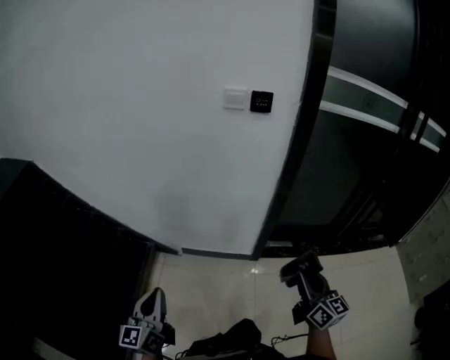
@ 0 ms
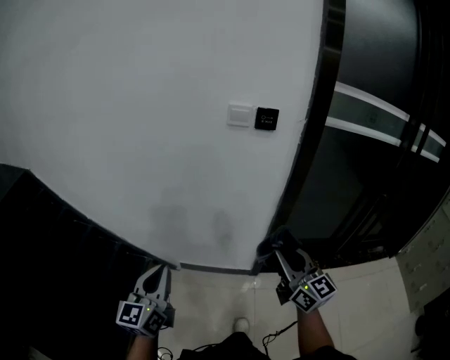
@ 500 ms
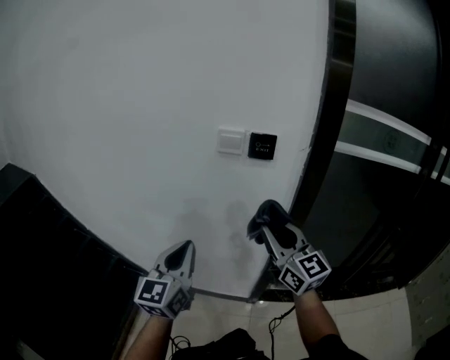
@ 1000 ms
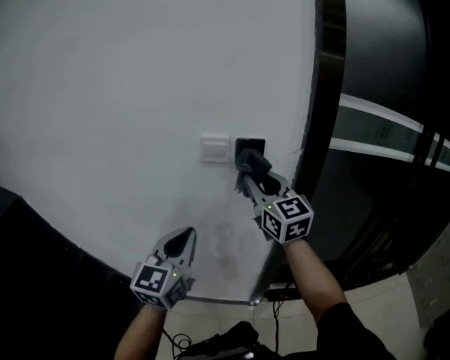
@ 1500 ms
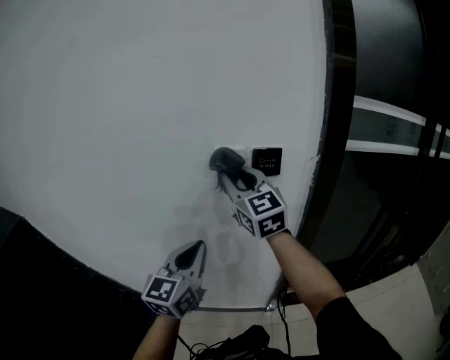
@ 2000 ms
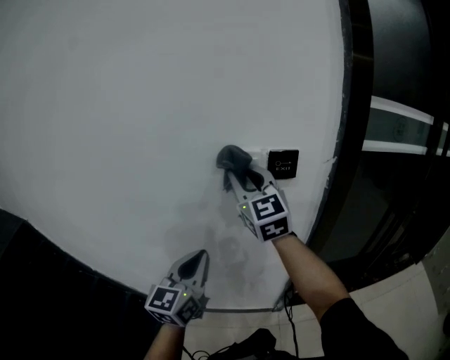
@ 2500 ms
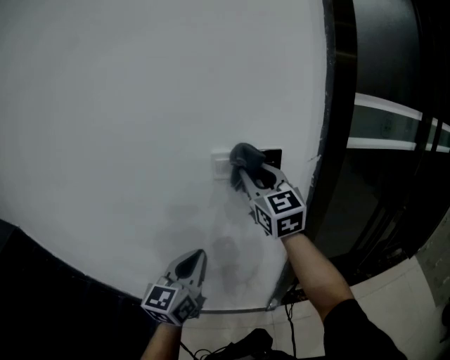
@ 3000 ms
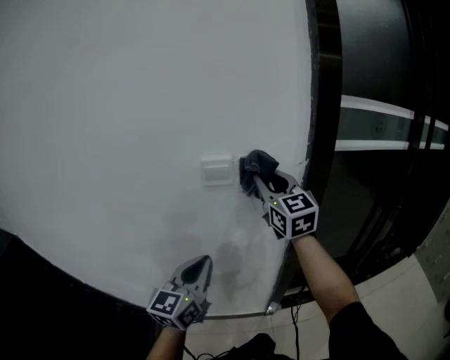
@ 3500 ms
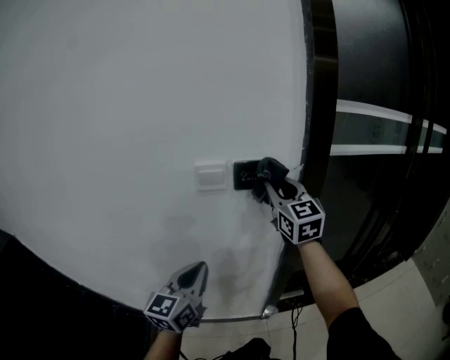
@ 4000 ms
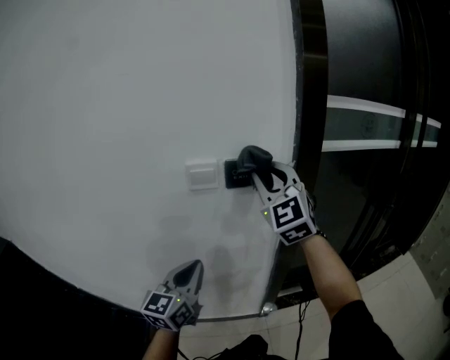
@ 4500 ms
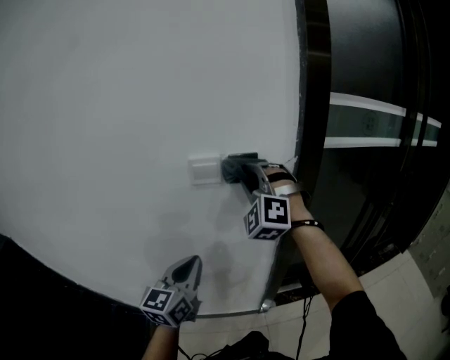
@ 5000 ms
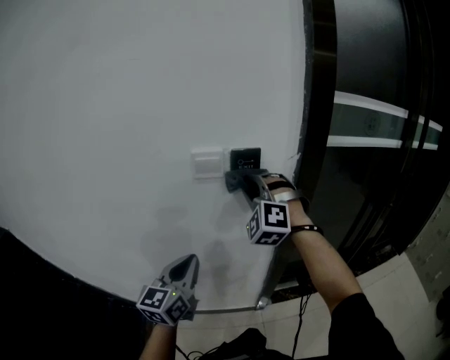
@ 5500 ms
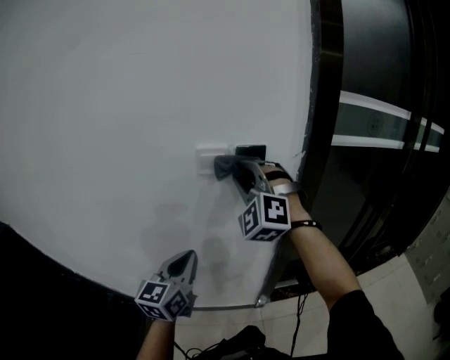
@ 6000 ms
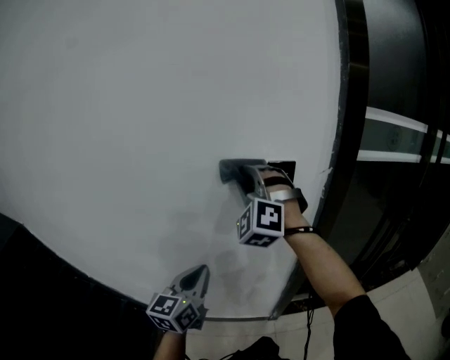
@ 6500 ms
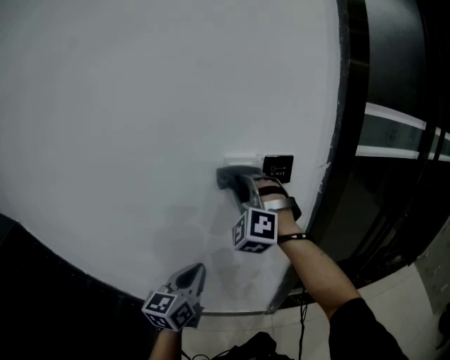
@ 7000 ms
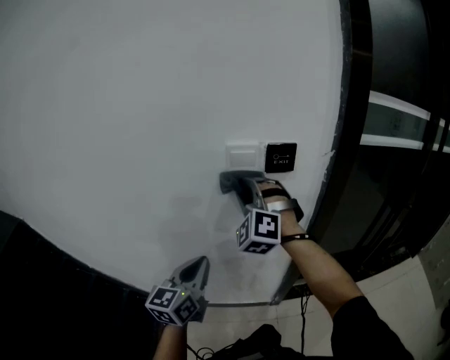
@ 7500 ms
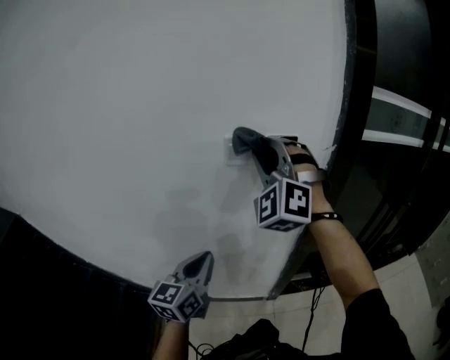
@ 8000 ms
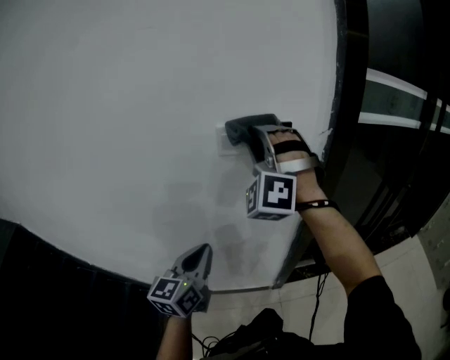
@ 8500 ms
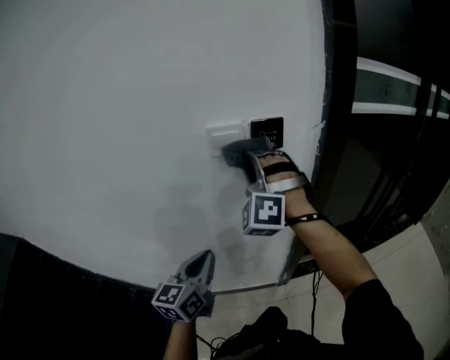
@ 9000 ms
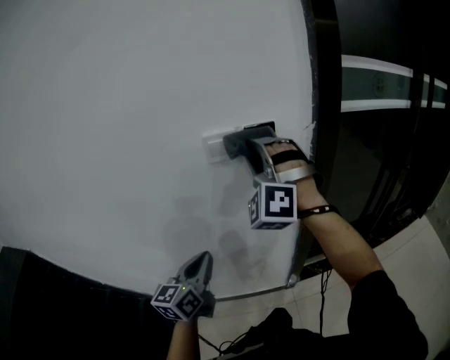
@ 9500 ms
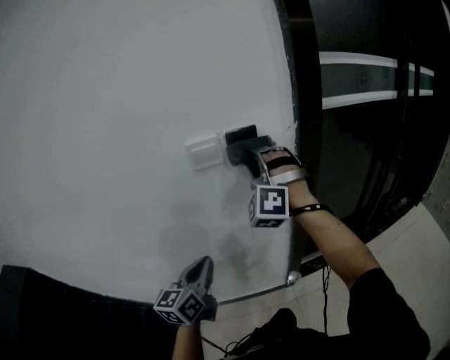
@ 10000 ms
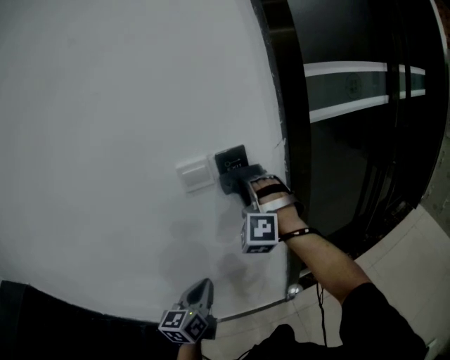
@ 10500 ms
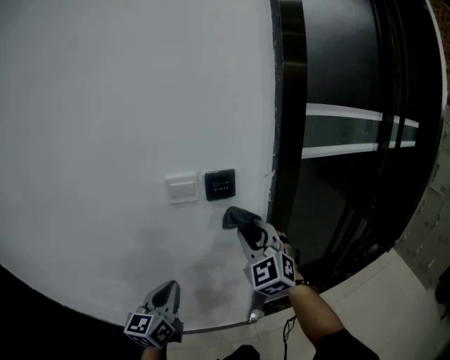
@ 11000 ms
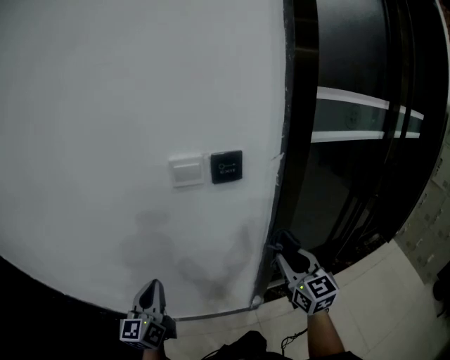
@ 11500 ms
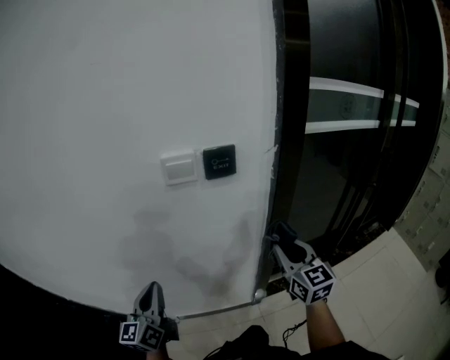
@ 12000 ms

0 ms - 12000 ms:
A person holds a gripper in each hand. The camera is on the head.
0 ms - 2000 ms: The left gripper heads forward, to the right and upward, covering roughly 50 cm, and rotates approximately 20 degrees; the right gripper goes roughly 60 cm forward and upward, and rotates roughly 40 degrees.
2000 ms - 4000 ms: The right gripper goes approximately 15 cm to the right; the left gripper changes place by about 5 cm.
4000 ms - 6000 ms: The right gripper moves to the left, some 10 cm, and rotates around the line of its fingers by about 60 degrees, counterclockwise from behind.
8000 ms - 10000 ms: The right gripper moves up and down over approximately 10 cm, changing direction 2 times.
10000 ms - 12000 ms: The left gripper moves to the left, roughly 5 cm; the right gripper goes roughly 25 cm downward, to the right and backward, and twists roughly 80 degrees clockwise, seen from behind.

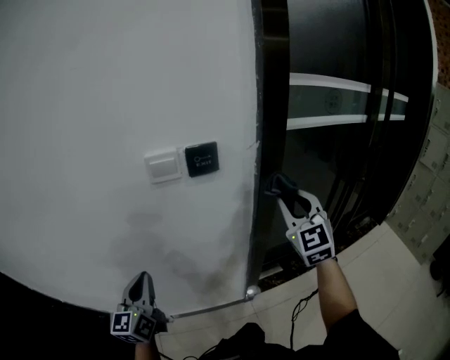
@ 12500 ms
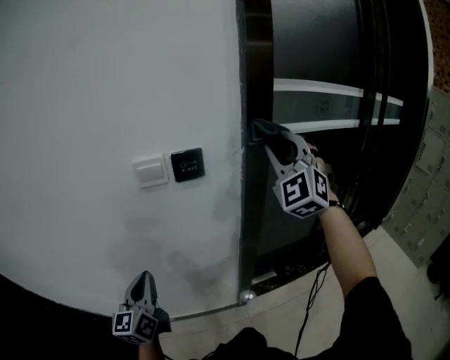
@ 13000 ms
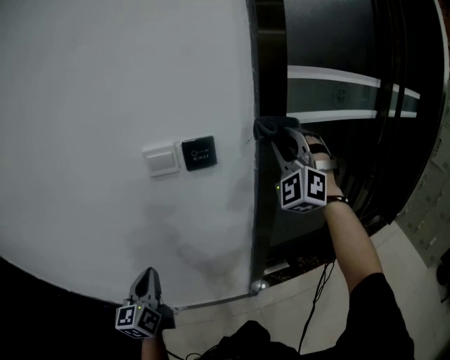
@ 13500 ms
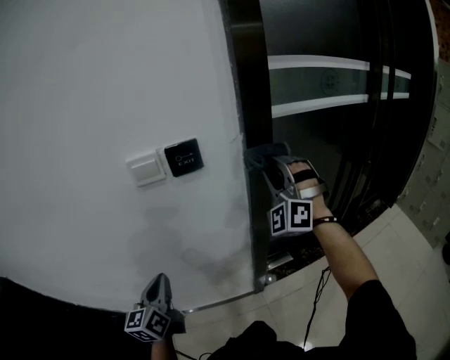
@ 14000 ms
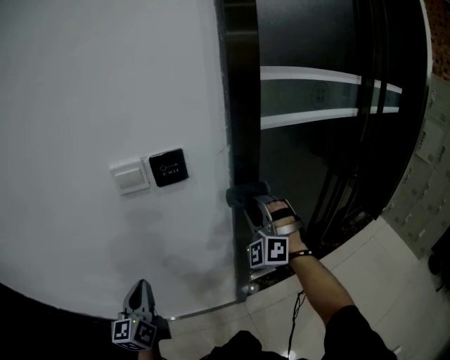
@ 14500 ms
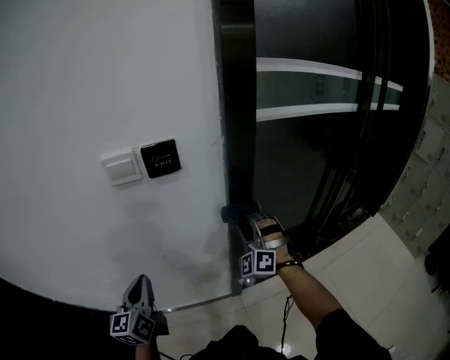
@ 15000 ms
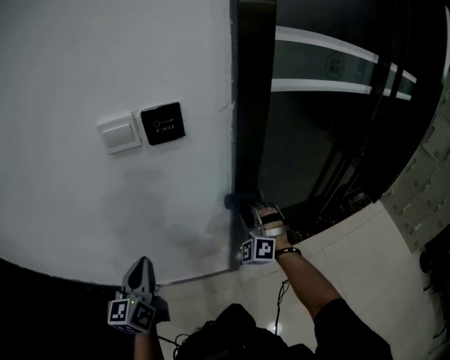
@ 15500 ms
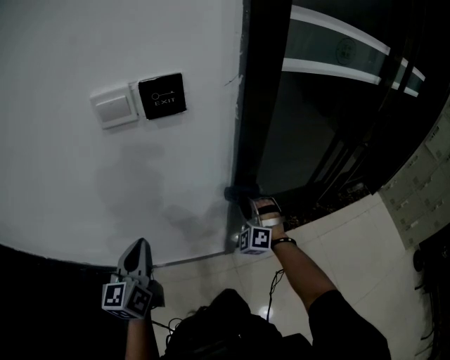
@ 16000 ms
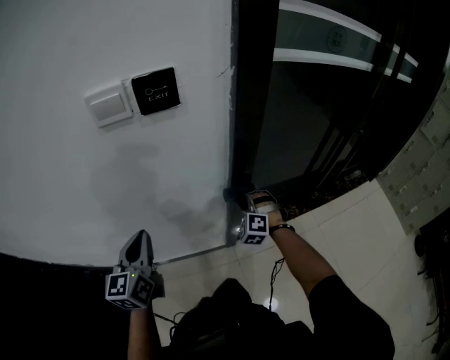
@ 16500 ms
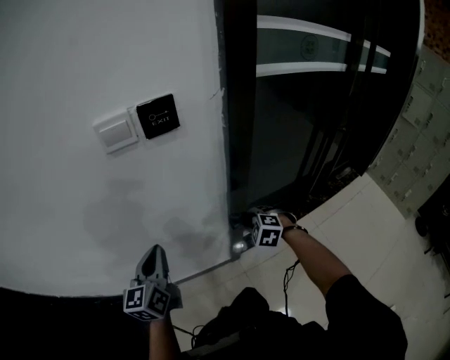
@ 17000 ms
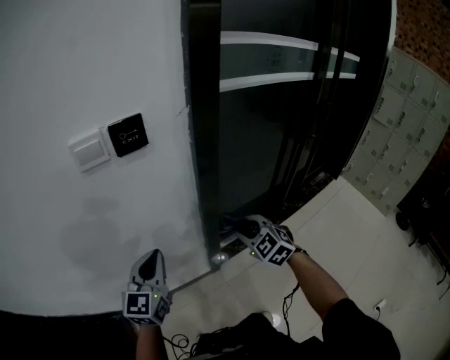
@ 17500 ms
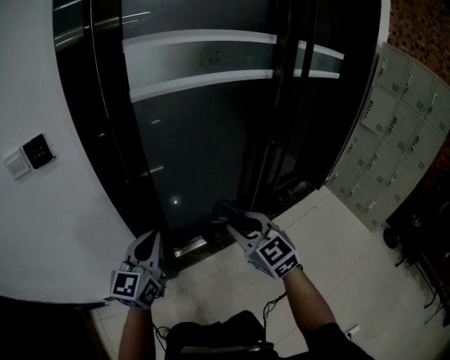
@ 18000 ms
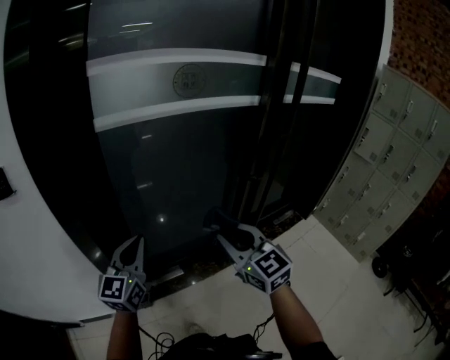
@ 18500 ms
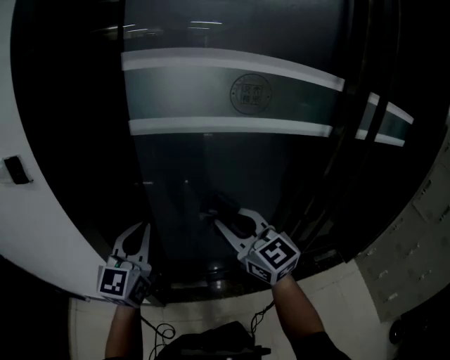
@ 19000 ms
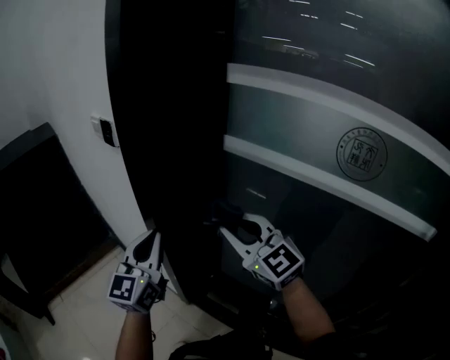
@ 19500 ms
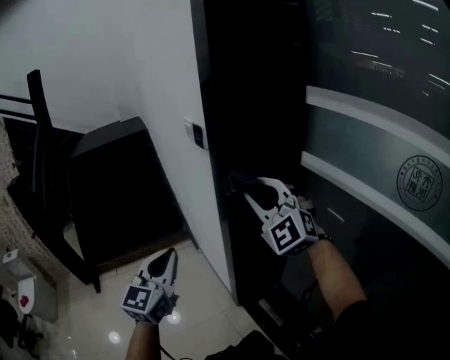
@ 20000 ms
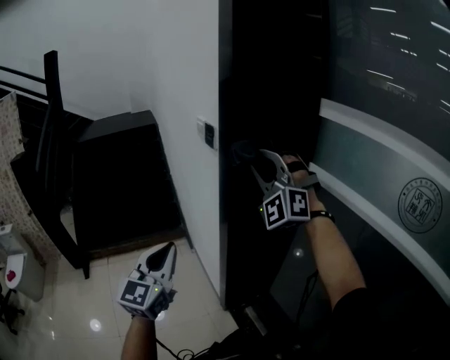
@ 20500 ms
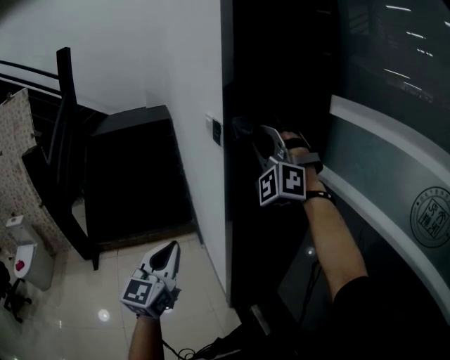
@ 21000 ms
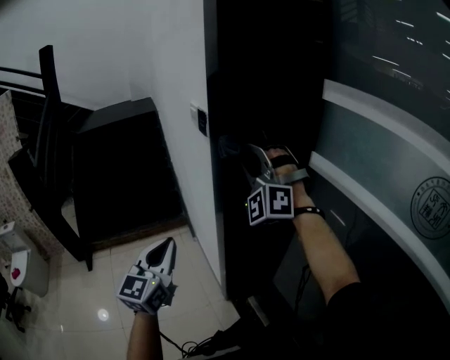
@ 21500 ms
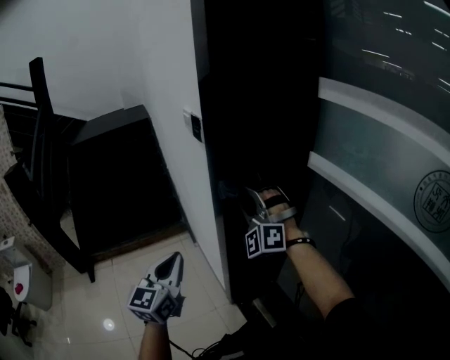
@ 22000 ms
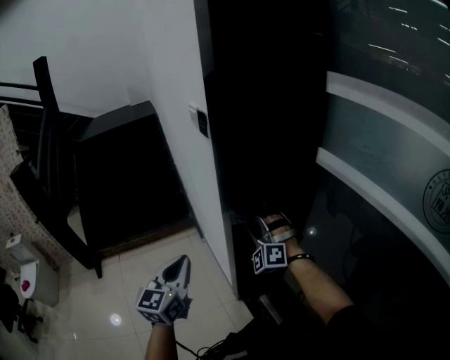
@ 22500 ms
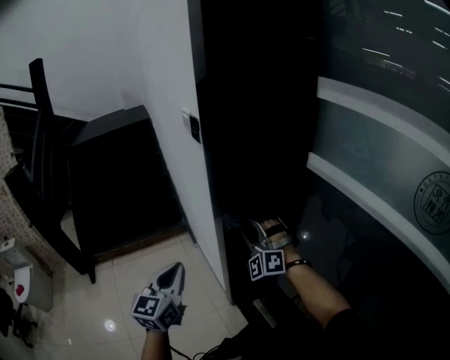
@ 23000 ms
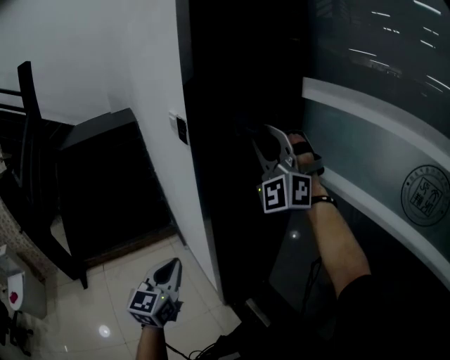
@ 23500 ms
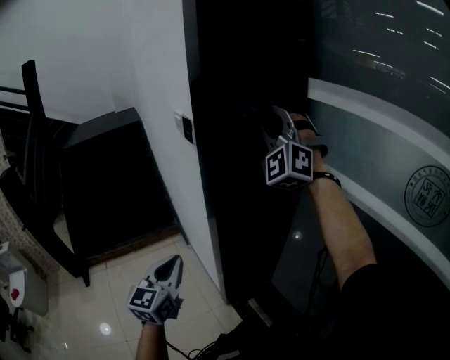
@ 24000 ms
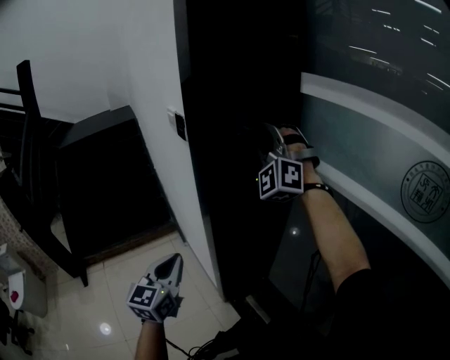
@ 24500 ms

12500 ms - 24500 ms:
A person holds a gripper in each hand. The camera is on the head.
12500 ms - 14500 ms: The right gripper travels forward by about 5 cm, goes upward and returns, approximately 15 cm each way, and rolls counterclockwise, seen from behind, by approximately 50 degrees. The left gripper shifts about 5 cm to the right.
14500 ms - 16500 ms: The right gripper shifts roughly 30 cm downward, and points its fingers some 30 degrees further downward. Meanwhile the left gripper shifts by roughly 5 cm.
16500 ms - 18500 ms: The two grippers travel together, to the right, approximately 50 cm. The right gripper moves upward, about 25 cm, and twists about 50 degrees clockwise, seen from behind; the left gripper changes its angle by about 20 degrees.
18500 ms - 20500 ms: The right gripper changes place by roughly 40 cm, and changes its angle by roughly 100 degrees. Meanwhile the left gripper ends up about 10 cm from where it was, and turns by some 90 degrees.
20500 ms - 22500 ms: The left gripper goes some 10 cm downward. The right gripper shifts some 30 cm downward.
22500 ms - 24500 ms: The right gripper heads upward, covering approximately 30 cm, and rotates roughly 20 degrees.

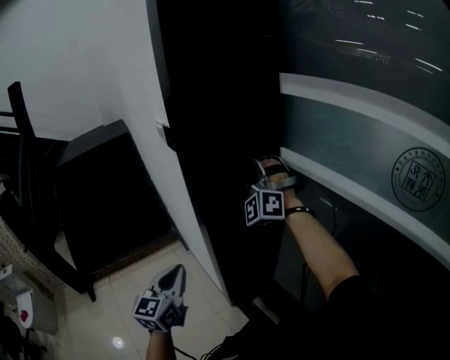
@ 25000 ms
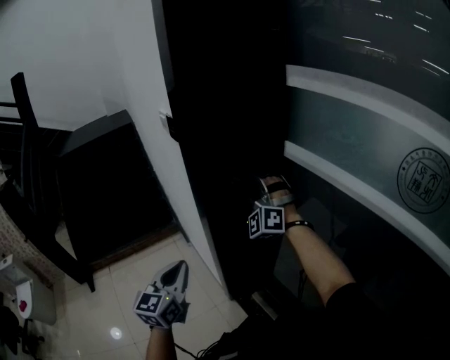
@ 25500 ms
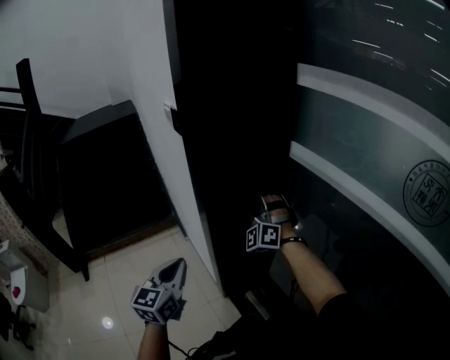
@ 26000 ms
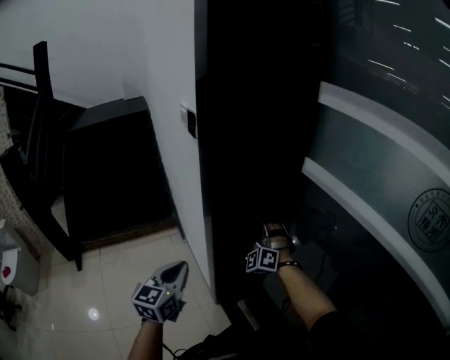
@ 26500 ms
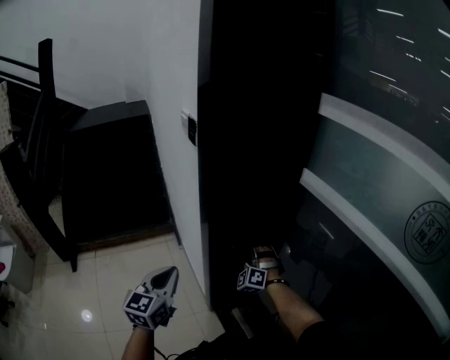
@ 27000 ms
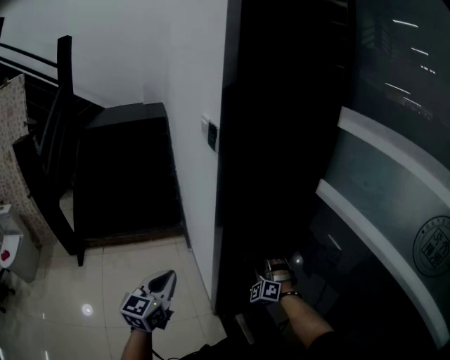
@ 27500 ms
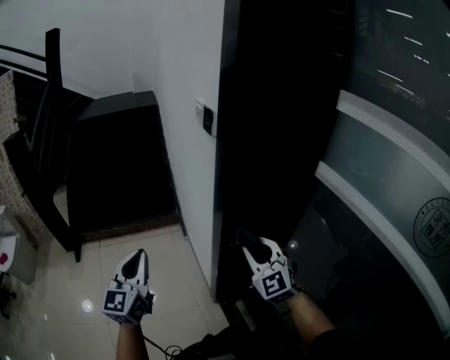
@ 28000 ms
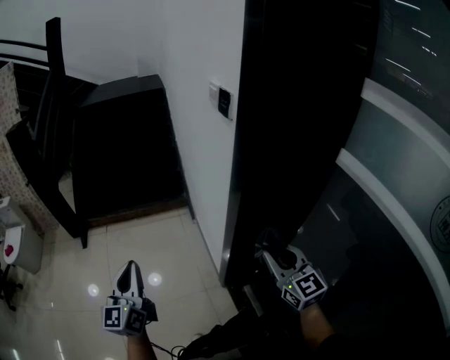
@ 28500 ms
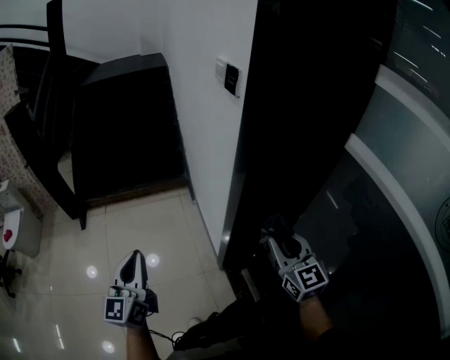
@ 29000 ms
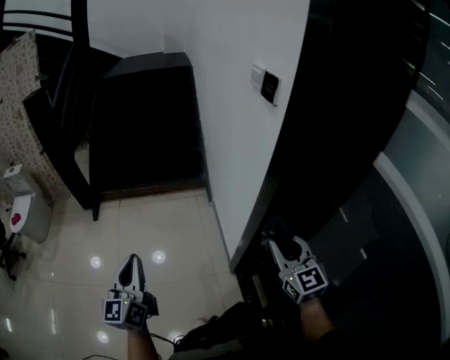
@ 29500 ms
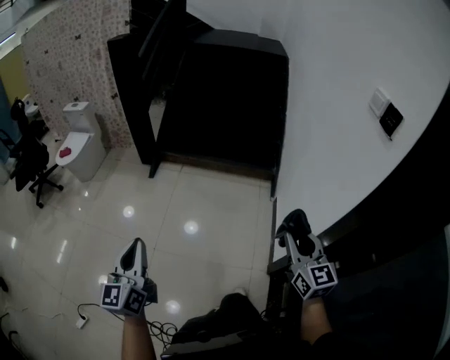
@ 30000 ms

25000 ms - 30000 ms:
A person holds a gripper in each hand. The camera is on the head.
25000 ms - 27500 ms: The right gripper goes some 30 cm downward, and swivels approximately 20 degrees, while the left gripper changes place by roughly 5 cm.
27500 ms - 30000 ms: The left gripper shifts by about 40 cm, and rotates some 50 degrees, while the right gripper ends up about 35 cm from where it was, and rotates around the line of its fingers by roughly 60 degrees, clockwise from behind.
